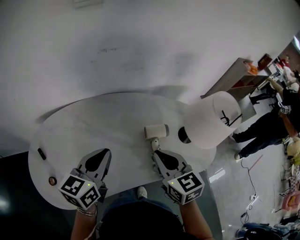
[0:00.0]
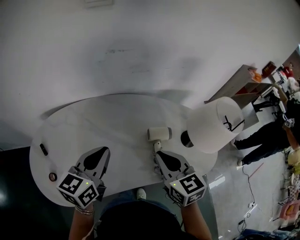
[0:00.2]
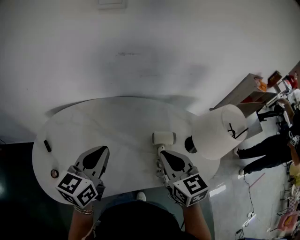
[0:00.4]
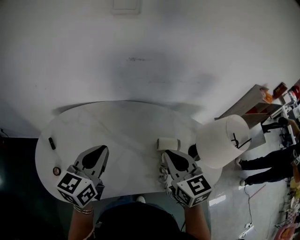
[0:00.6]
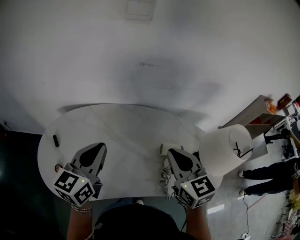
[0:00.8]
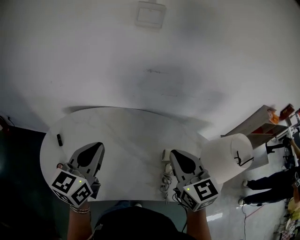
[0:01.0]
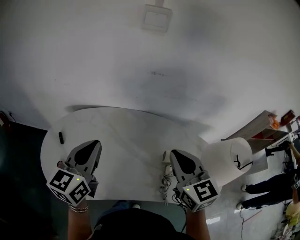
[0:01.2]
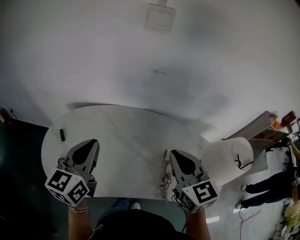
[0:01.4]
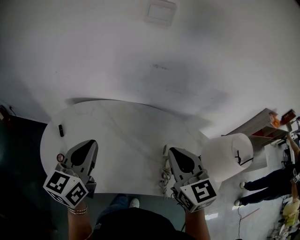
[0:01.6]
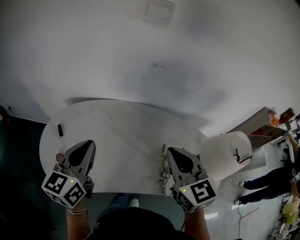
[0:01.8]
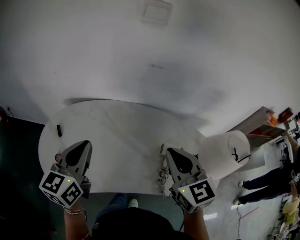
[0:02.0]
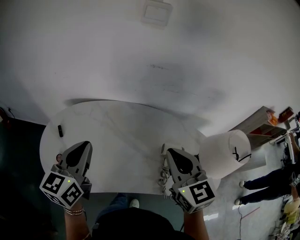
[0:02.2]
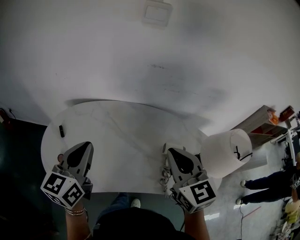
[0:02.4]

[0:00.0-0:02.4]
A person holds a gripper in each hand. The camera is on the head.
0:00.0 to 0:01.2: The left gripper moves to the left and upward, roughly 15 cm, and swivels about 30 degrees; the right gripper goes approximately 10 cm upward and forward, and changes its angle by approximately 20 degrees.
0:01.2 to 0:02.4: The grippers make only small movements.

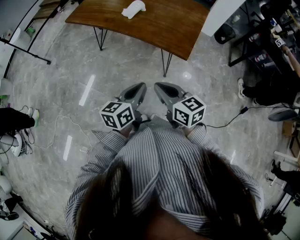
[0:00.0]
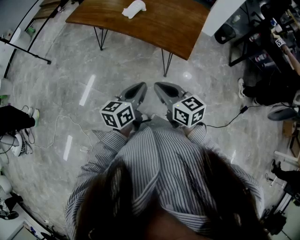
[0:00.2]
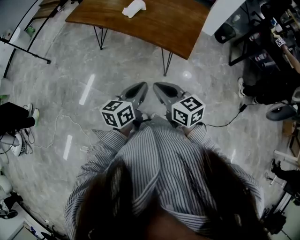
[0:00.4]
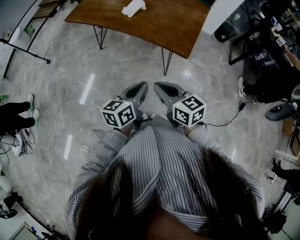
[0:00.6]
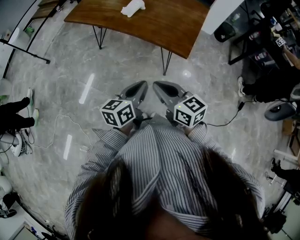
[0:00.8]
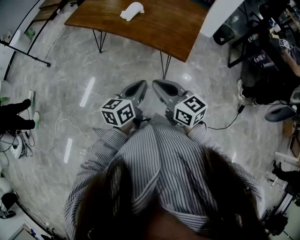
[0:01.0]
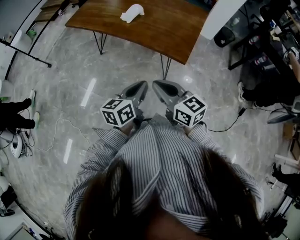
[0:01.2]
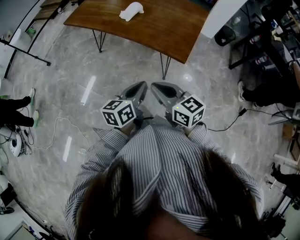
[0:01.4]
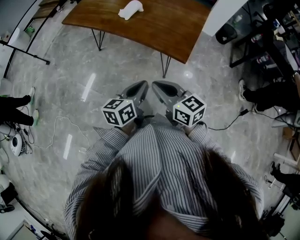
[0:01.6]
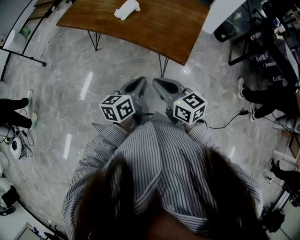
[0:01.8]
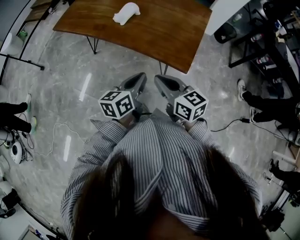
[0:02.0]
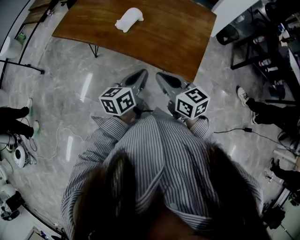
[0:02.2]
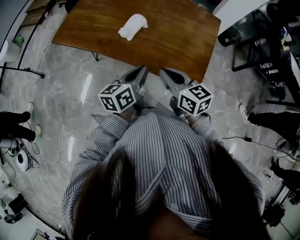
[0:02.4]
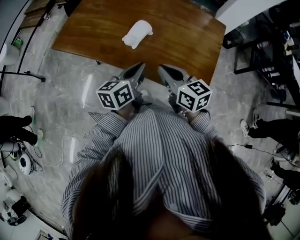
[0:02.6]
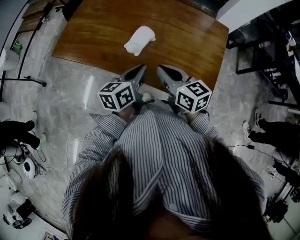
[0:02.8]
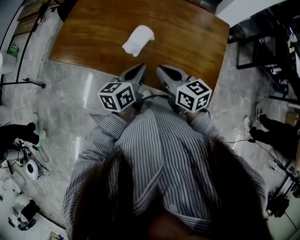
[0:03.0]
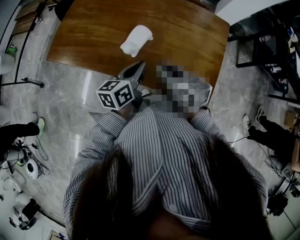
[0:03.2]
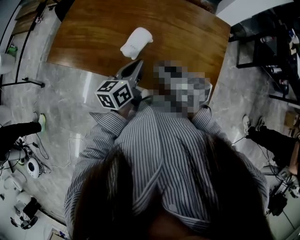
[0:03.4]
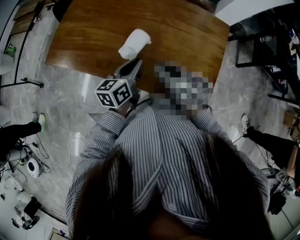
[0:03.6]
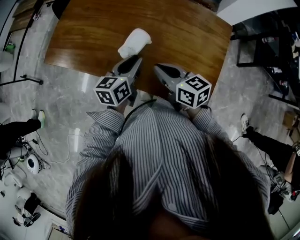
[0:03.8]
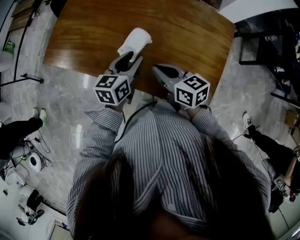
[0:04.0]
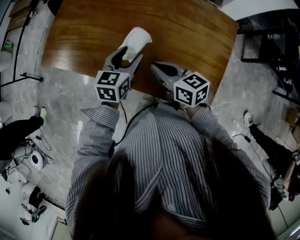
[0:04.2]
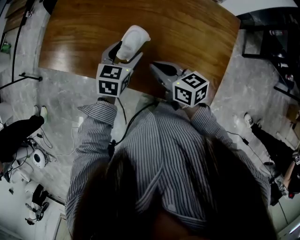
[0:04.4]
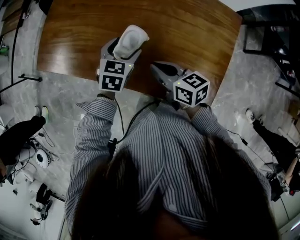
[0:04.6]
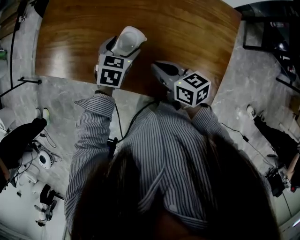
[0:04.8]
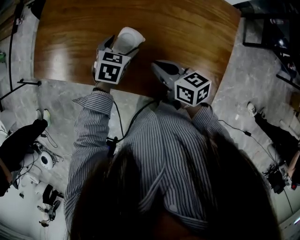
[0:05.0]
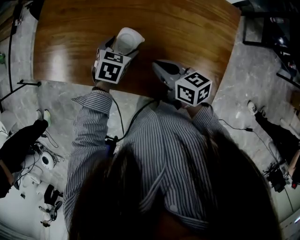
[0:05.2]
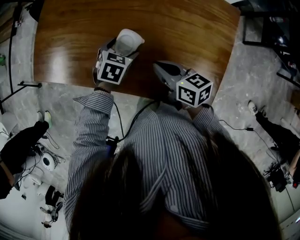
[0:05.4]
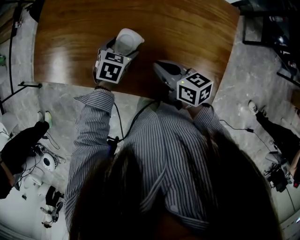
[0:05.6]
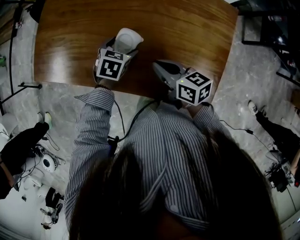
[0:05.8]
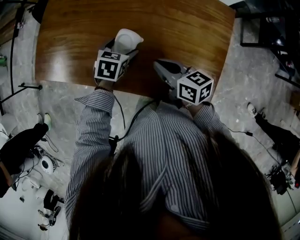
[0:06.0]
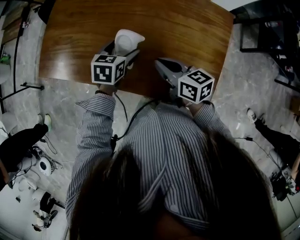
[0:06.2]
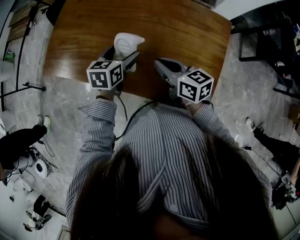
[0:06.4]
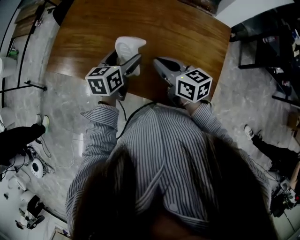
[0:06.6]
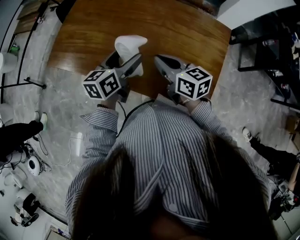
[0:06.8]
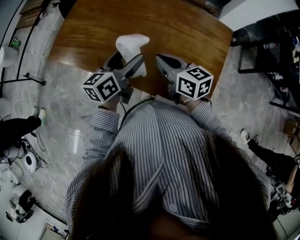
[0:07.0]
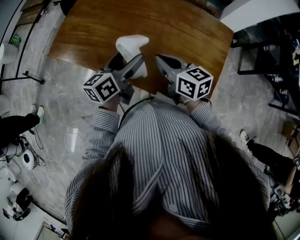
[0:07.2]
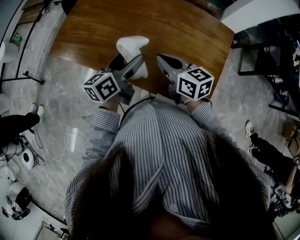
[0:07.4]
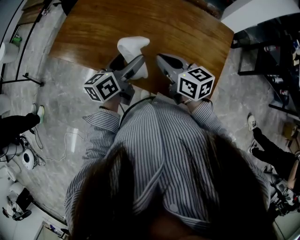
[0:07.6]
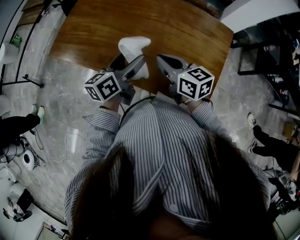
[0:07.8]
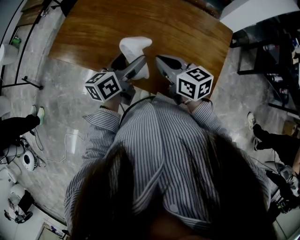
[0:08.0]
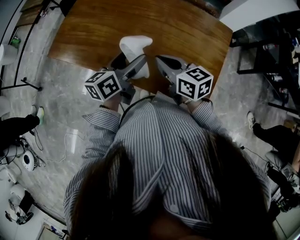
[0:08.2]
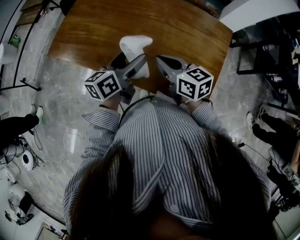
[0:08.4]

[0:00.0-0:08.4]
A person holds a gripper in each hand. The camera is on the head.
0:00.0 to 0:01.4: The grippers make only small movements.
0:01.4 to 0:02.8: Both grippers move forward, some 40 cm.
0:02.8 to 0:04.2: The left gripper heads forward, covering some 10 cm, rotates roughly 30 degrees, and opens. Meanwhile the right gripper travels forward and downward by roughly 10 cm.
0:04.2 to 0:05.6: The right gripper ends up approximately 5 cm from where it was. The left gripper travels downward and forward by about 10 cm, swivels about 30 degrees, and opens.
0:05.6 to 0:07.0: The left gripper goes roughly 20 cm upward and backward, and angles its fingers upward, by approximately 40 degrees. Meanwhile the right gripper is displaced upward by some 10 cm.
0:07.0 to 0:08.4: The grippers move only a little.

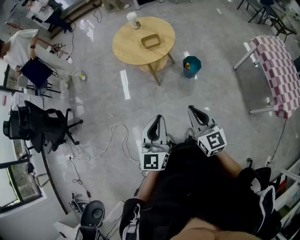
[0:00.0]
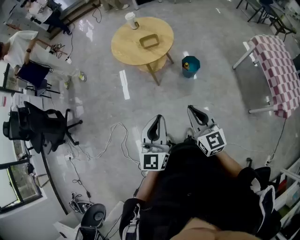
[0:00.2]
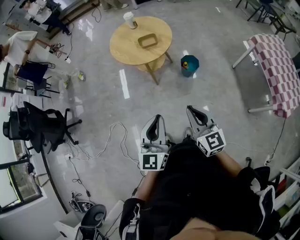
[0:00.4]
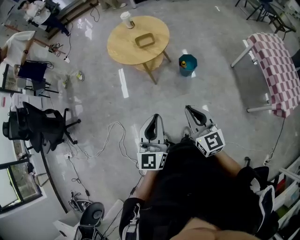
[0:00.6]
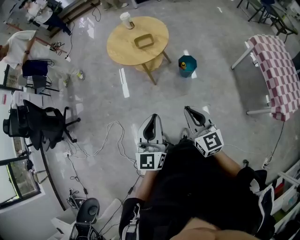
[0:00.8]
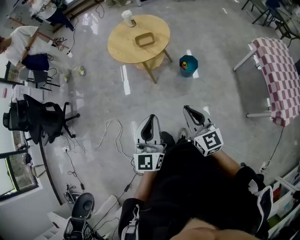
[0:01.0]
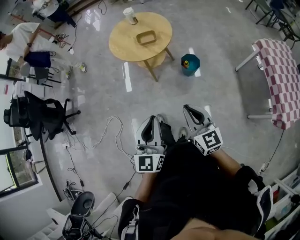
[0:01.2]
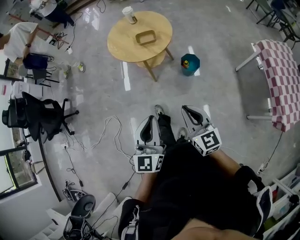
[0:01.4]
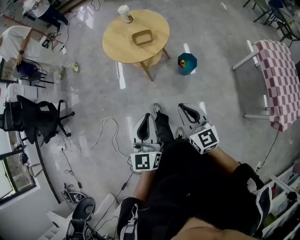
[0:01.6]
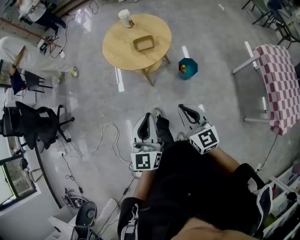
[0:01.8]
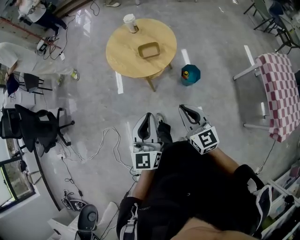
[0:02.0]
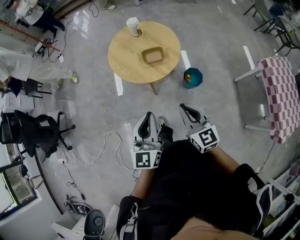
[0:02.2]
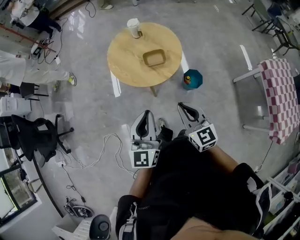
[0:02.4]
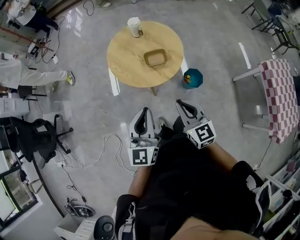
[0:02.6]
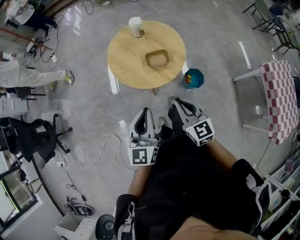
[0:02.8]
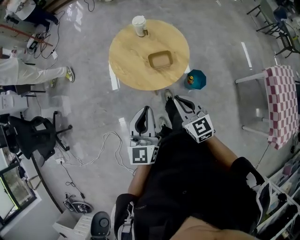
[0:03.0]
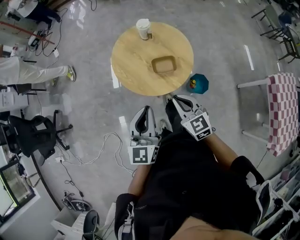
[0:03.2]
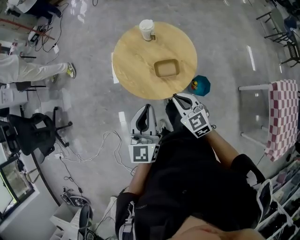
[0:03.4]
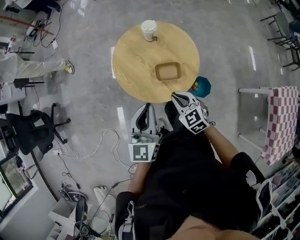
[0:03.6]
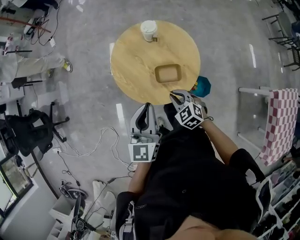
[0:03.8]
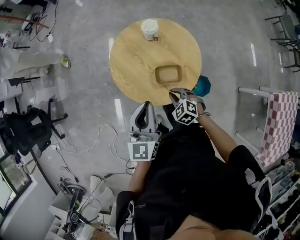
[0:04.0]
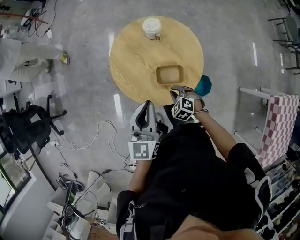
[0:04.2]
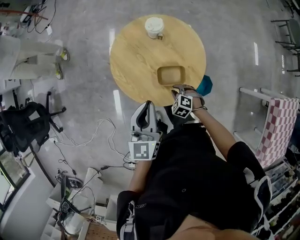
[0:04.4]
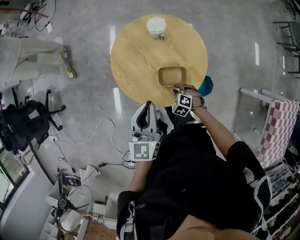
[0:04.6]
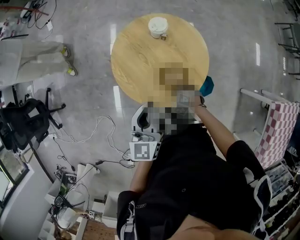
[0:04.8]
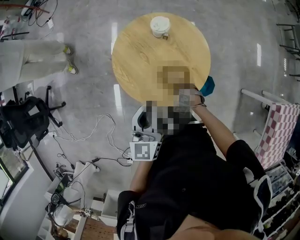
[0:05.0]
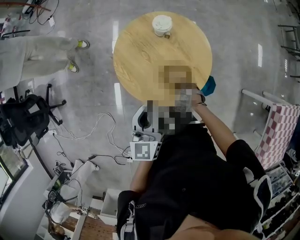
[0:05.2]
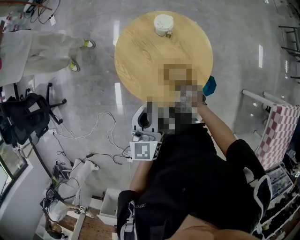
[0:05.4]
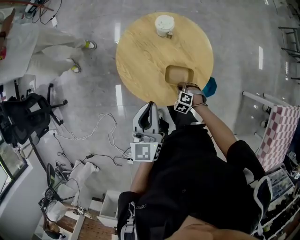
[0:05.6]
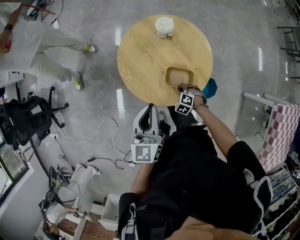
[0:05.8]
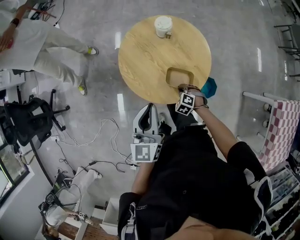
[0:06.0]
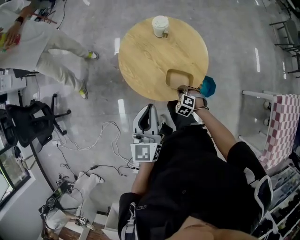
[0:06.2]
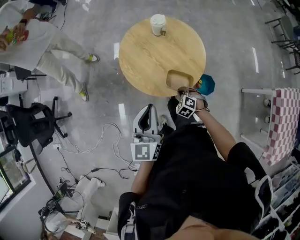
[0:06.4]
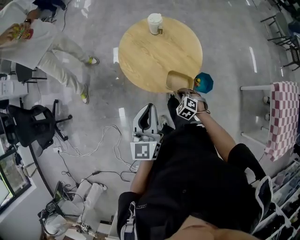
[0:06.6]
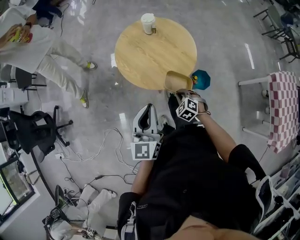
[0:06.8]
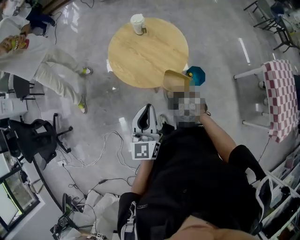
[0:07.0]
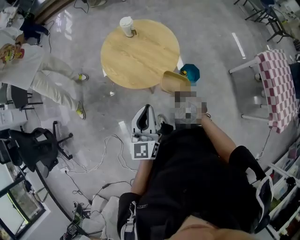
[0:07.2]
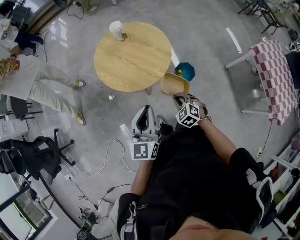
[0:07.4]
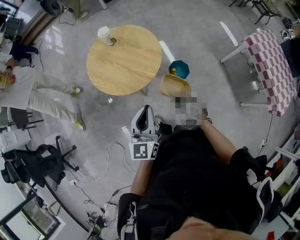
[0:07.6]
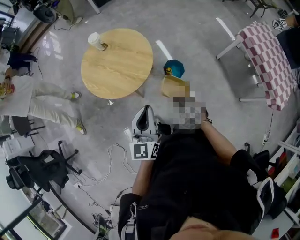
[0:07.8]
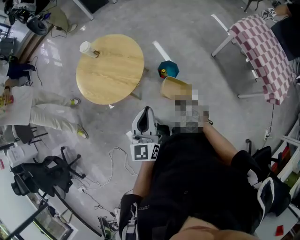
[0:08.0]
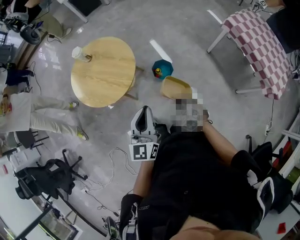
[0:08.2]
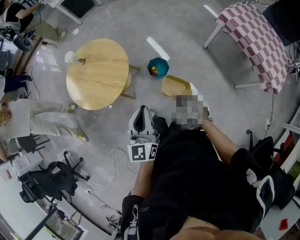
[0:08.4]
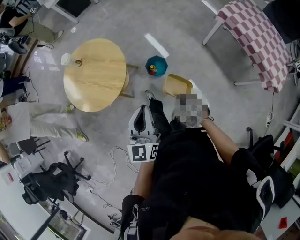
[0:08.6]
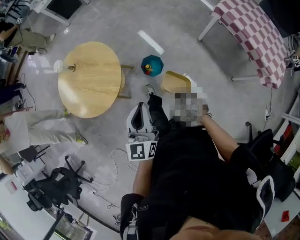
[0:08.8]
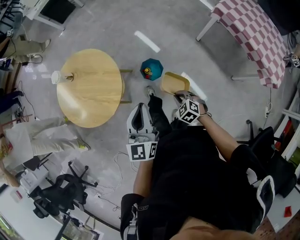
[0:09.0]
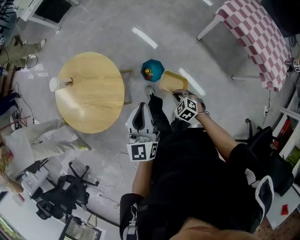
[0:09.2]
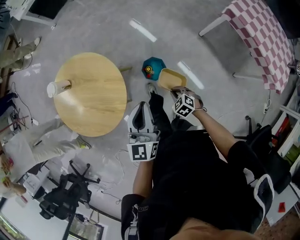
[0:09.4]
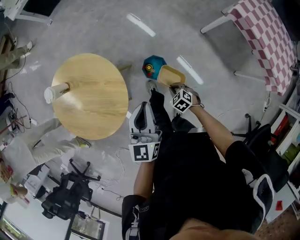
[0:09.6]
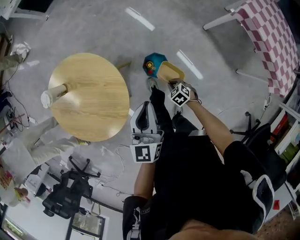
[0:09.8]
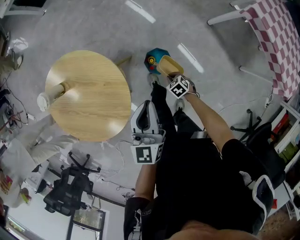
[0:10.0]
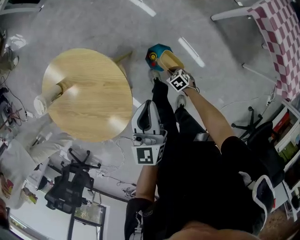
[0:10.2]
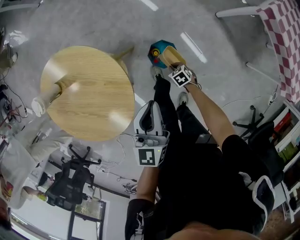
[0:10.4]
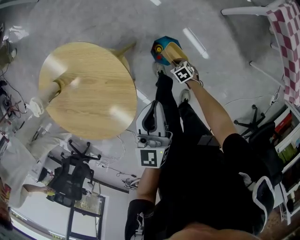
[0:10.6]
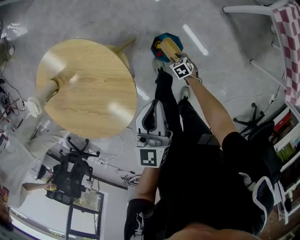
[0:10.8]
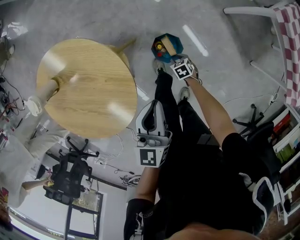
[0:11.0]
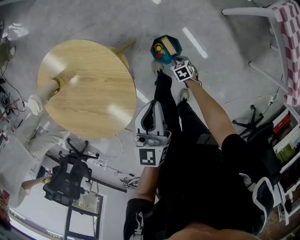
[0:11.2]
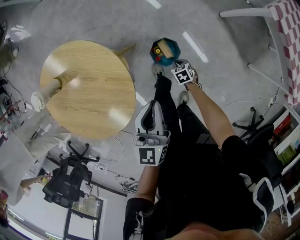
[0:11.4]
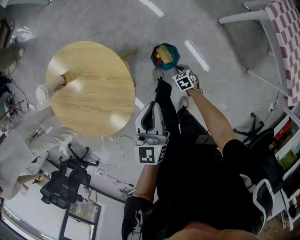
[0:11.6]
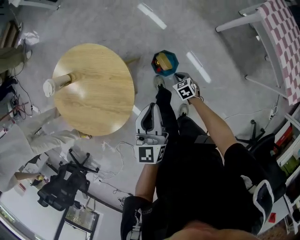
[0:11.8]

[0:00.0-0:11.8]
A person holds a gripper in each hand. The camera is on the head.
0:00.0 to 0:01.4: The two grippers go about 10 cm to the right.
0:01.4 to 0:03.0: The grippers both shift forward by roughly 40 cm.
0:03.0 to 0:04.4: The left gripper moves forward, approximately 25 cm. The right gripper travels downward and forward by about 35 cm, and tilts its fingers some 50 degrees downward.
0:04.4 to 0:06.0: The left gripper moves some 5 cm.
0:06.0 to 0:07.4: The right gripper goes some 30 cm backward and upward, and rotates roughly 30 degrees; the left gripper goes roughly 25 cm backward, and turns by about 20 degrees.
0:07.4 to 0:08.8: Both grippers move to the right, about 30 cm. The right gripper turns by about 20 degrees.
0:08.8 to 0:10.4: The left gripper shifts about 35 cm forward and downward; the right gripper travels downward and forward by about 40 cm, and turns by about 40 degrees.
0:10.4 to 0:11.8: The right gripper shifts some 10 cm upward, and opens, then closes again. Meanwhile the left gripper travels backward by roughly 5 cm.

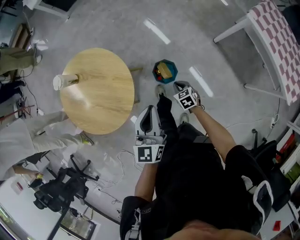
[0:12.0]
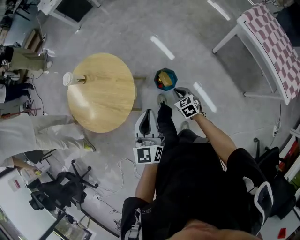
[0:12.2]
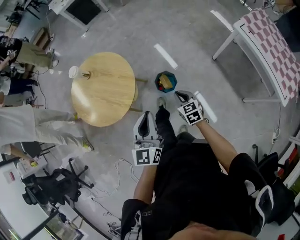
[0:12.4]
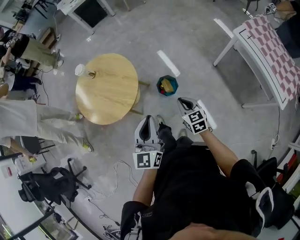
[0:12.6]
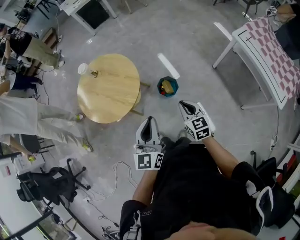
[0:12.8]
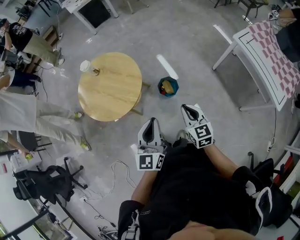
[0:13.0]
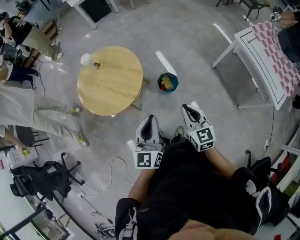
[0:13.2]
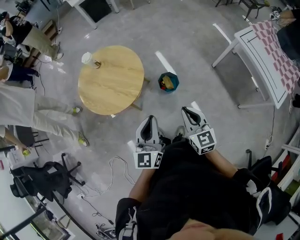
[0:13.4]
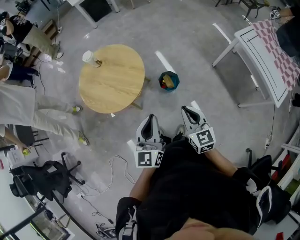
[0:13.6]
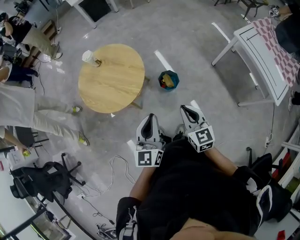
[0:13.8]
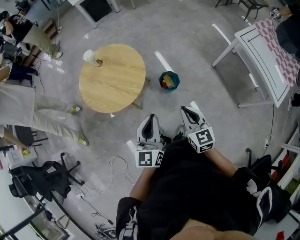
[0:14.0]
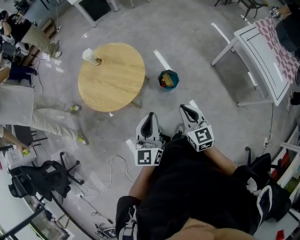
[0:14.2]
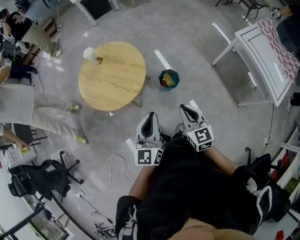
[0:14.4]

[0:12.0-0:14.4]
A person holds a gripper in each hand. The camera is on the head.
0:12.0 to 0:13.2: The right gripper travels upward and backward by approximately 40 cm, and angles its fingers upward, by some 40 degrees; the left gripper is displaced backward and upward by about 25 cm.
0:13.2 to 0:14.4: The right gripper moves some 5 cm.
